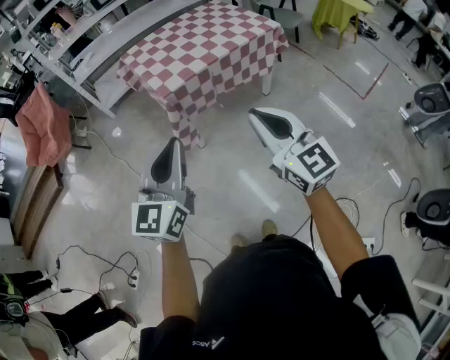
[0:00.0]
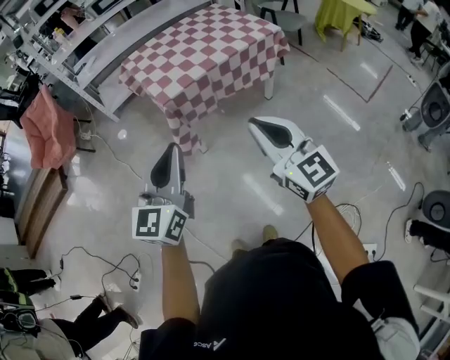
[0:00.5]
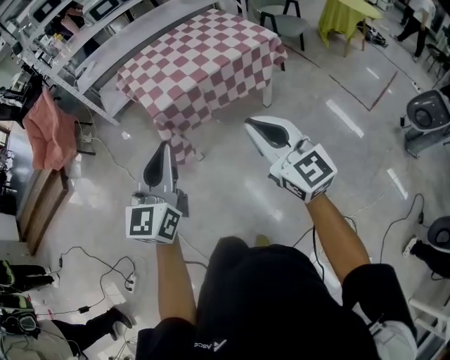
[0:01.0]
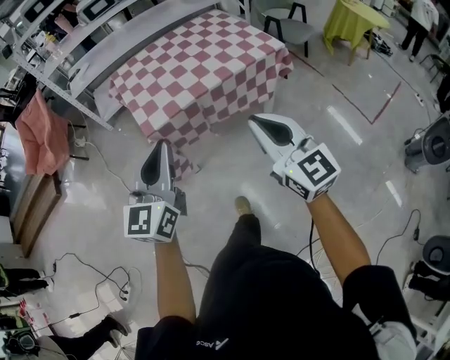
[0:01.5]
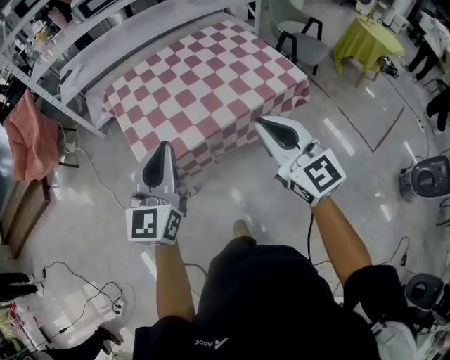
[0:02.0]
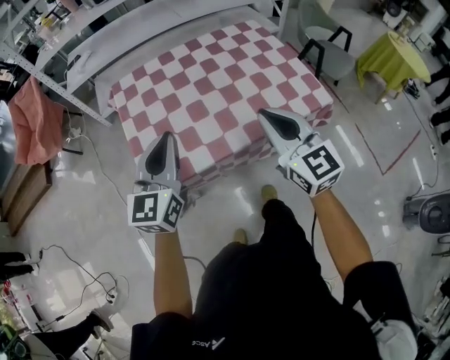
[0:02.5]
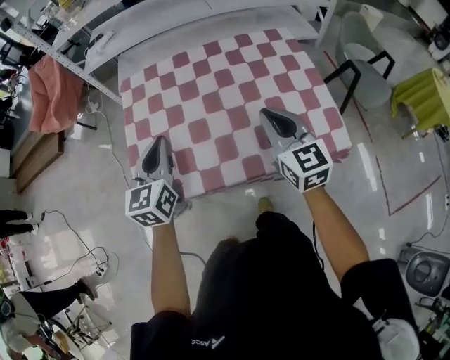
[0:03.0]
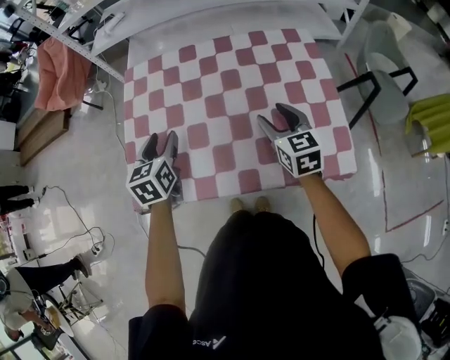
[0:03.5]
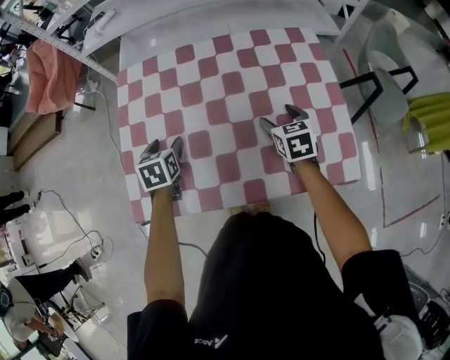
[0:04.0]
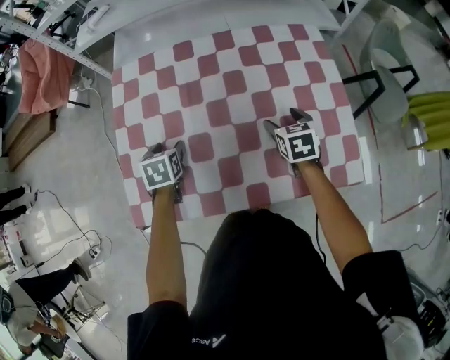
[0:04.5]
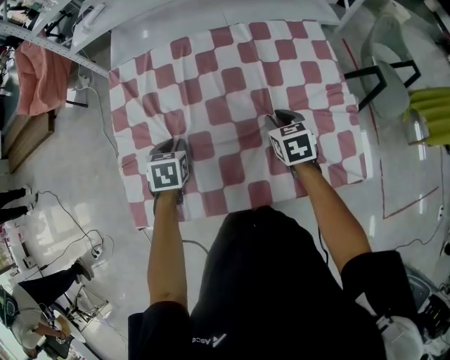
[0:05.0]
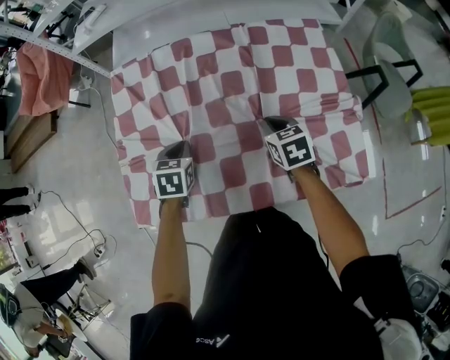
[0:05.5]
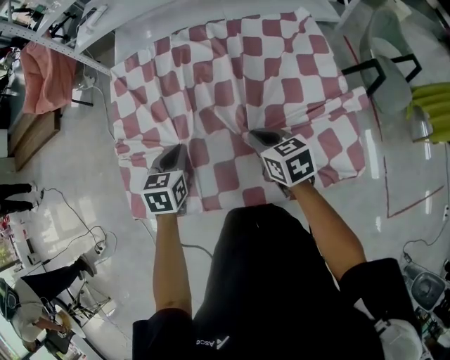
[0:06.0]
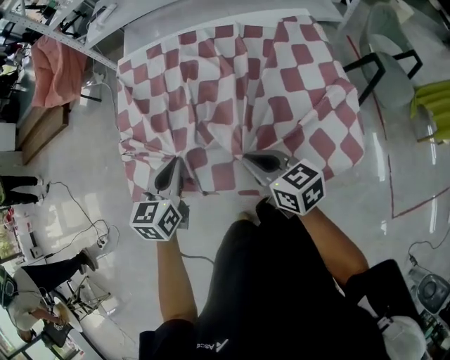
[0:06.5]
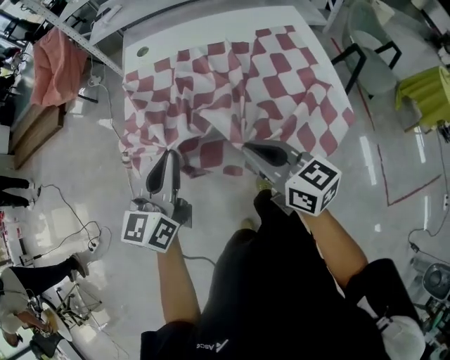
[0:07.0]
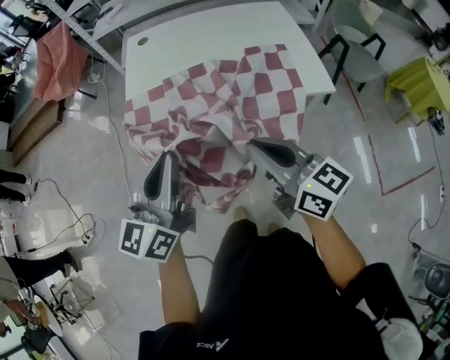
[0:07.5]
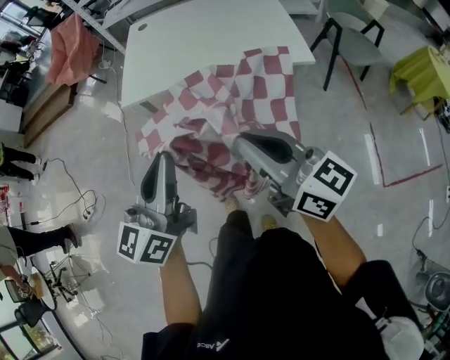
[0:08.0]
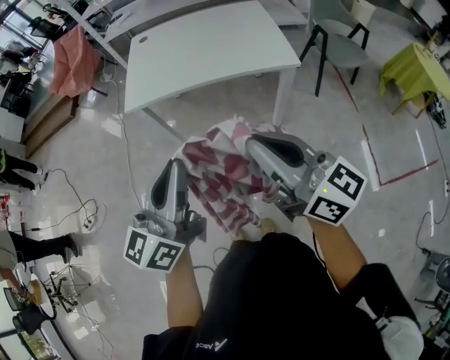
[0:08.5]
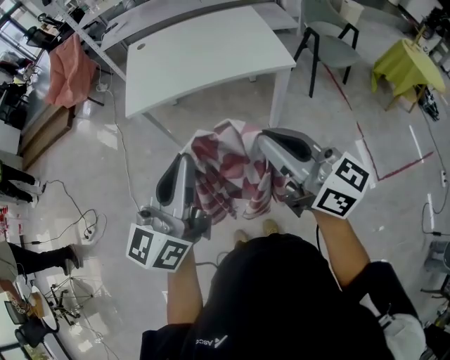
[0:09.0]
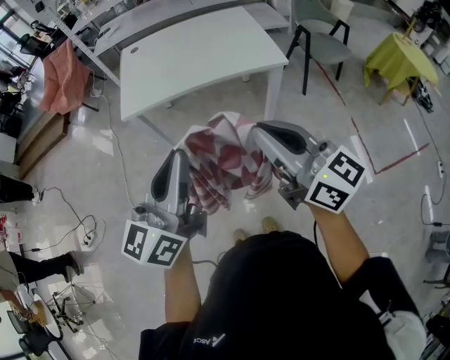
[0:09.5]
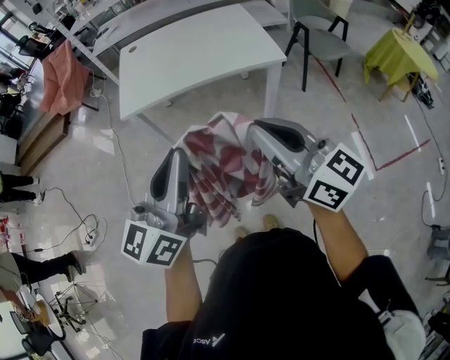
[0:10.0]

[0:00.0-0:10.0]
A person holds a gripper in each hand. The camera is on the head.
0:00.0 to 0:02.0: The two grippers travel together, forward, roughly 50 cm.
0:02.0 to 0:04.0: The pair of grippers is taken forward, about 50 cm. Both grippers travel together downward, roughly 25 cm. The left gripper tilts its fingers about 50 degrees downward, and opens its fingers. Meanwhile the right gripper tilts its fingers about 40 degrees downward, and opens up.
0:04.0 to 0:06.0: The left gripper is displaced backward and to the right by about 10 cm, and closes up, while the right gripper shifts roughly 10 cm to the left and backward, turns by some 20 degrees, and closes up.
0:06.0 to 0:08.0: The two grippers travel together, backward, about 60 cm. The two grippers go about 25 cm upward. The left gripper points its fingers about 50 degrees further upward; the right gripper angles its fingers upward, by approximately 40 degrees.
0:08.0 to 0:10.0: Both grippers travel together backward and upward, approximately 10 cm.

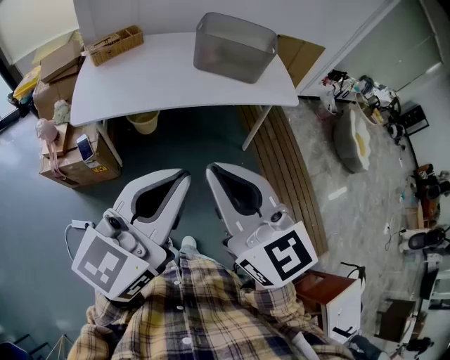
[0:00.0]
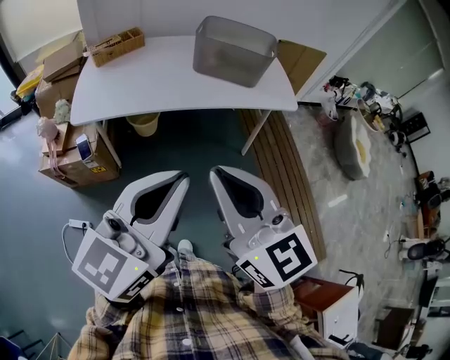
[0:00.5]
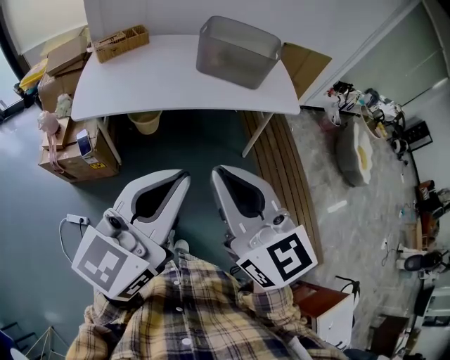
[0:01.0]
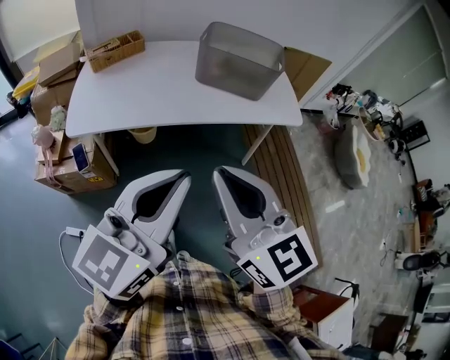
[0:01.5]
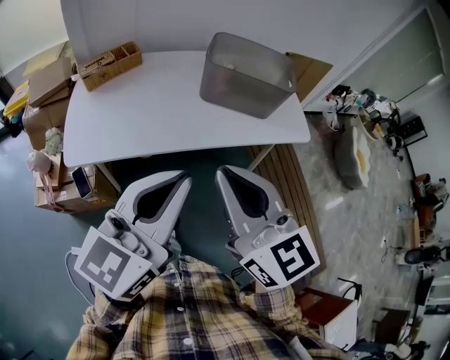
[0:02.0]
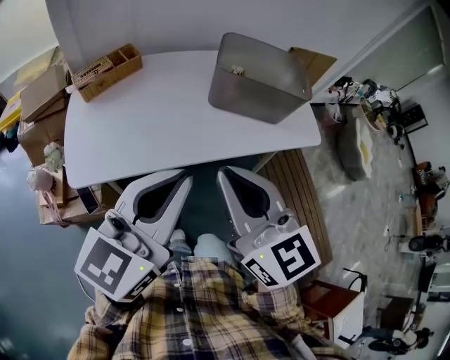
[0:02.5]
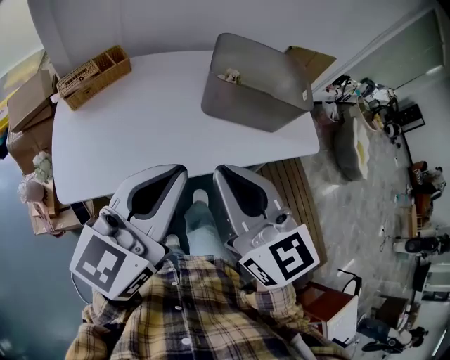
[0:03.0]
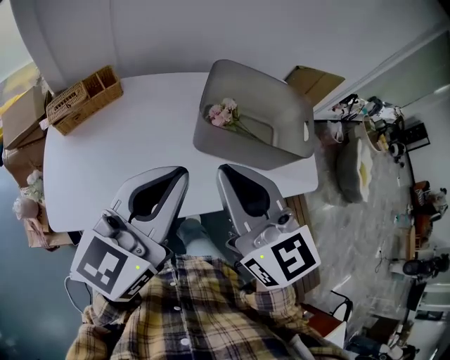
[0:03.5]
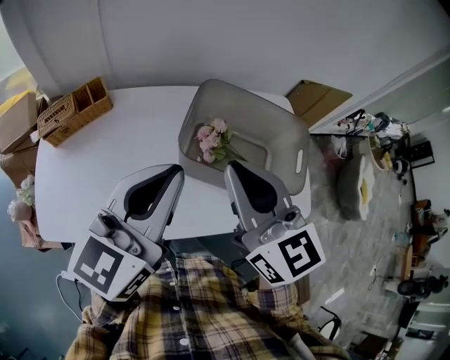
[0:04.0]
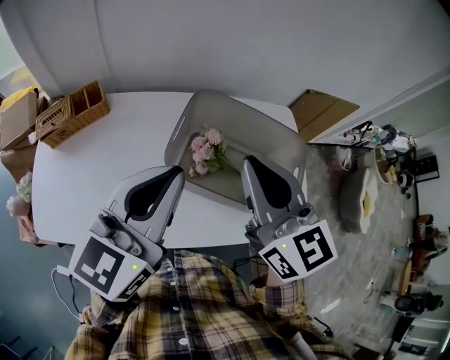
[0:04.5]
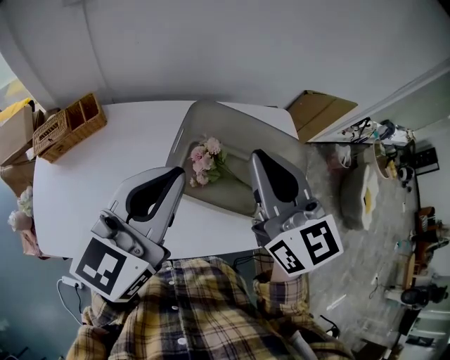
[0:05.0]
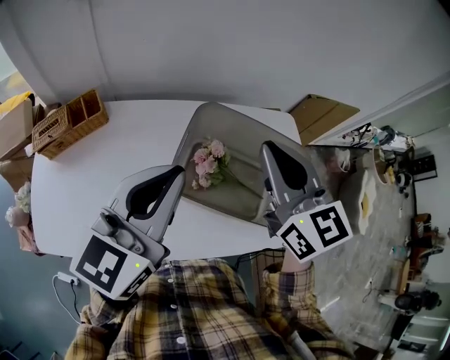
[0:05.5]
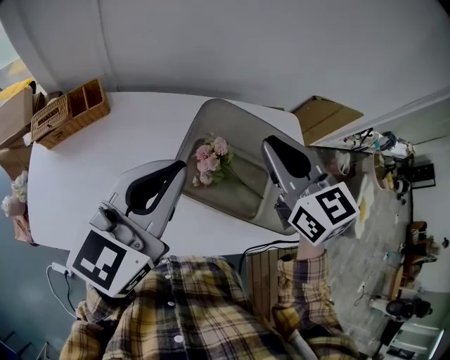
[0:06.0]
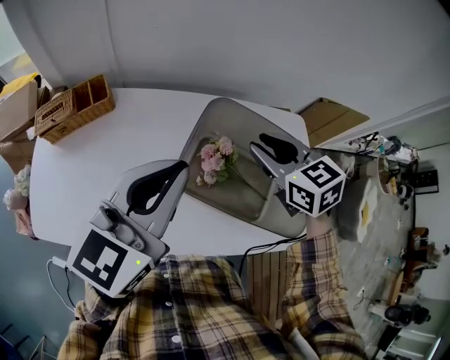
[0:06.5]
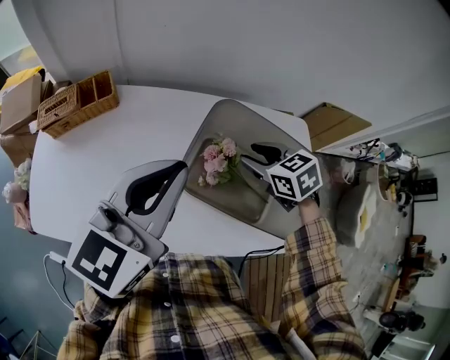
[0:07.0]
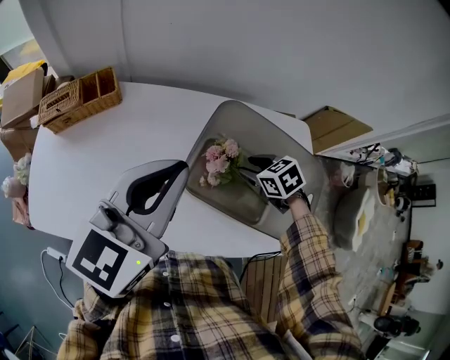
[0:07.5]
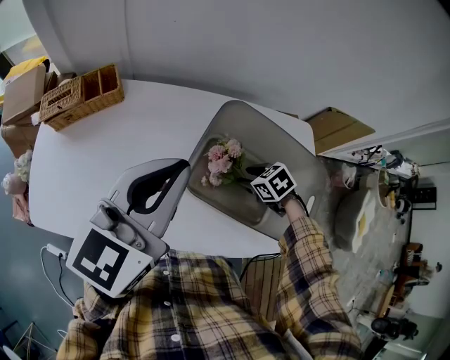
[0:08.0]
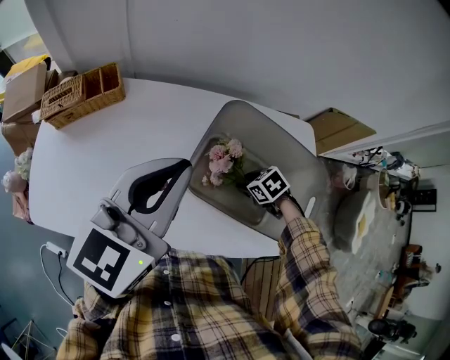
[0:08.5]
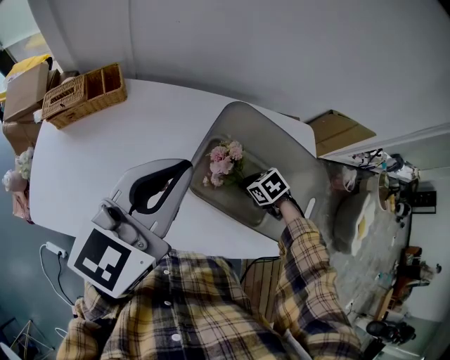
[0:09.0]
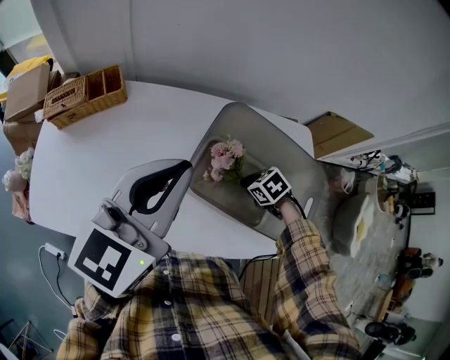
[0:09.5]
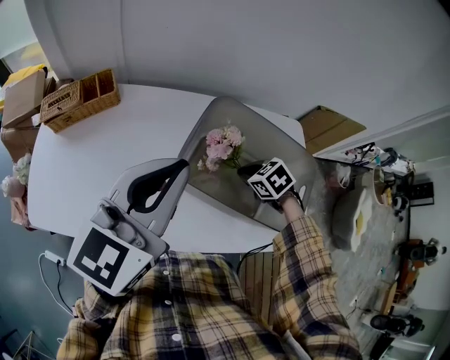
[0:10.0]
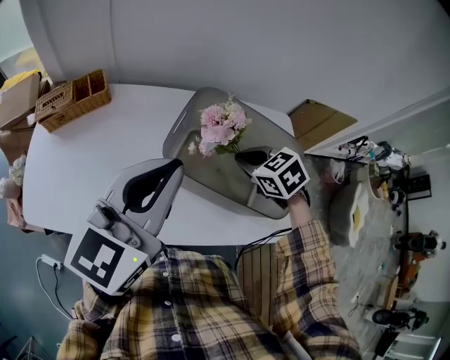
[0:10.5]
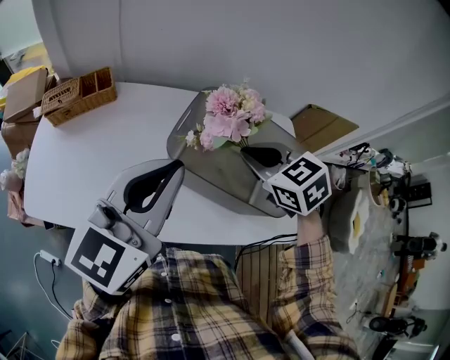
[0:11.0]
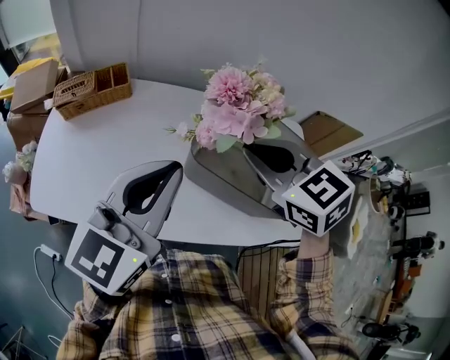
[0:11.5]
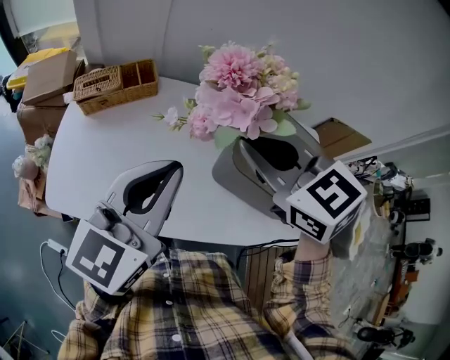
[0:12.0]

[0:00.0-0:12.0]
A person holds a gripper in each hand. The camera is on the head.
0:00.0 to 0:02.0: The grippers both shift forward by roughly 20 cm.
0:02.0 to 0:04.0: The grippers both shift forward by about 40 cm.
0:04.0 to 0:06.0: The right gripper moves forward and to the right, about 15 cm; the left gripper goes about 10 cm forward.
0:06.0 to 0:08.0: The right gripper travels downward by about 30 cm, points its fingers roughly 50 degrees further downward, and opens up.
0:08.0 to 0:10.0: The right gripper closes up.
0:10.0 to 0:12.0: The right gripper moves upward and to the left, some 40 cm, and angles its fingers upward, by about 40 degrees; the left gripper goes roughly 15 cm to the left.

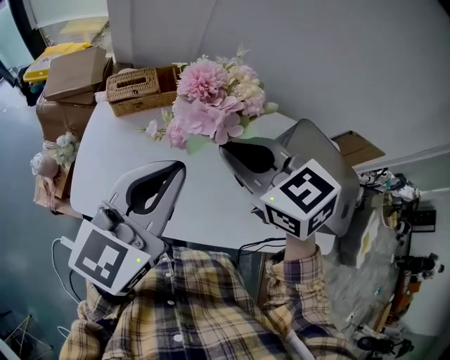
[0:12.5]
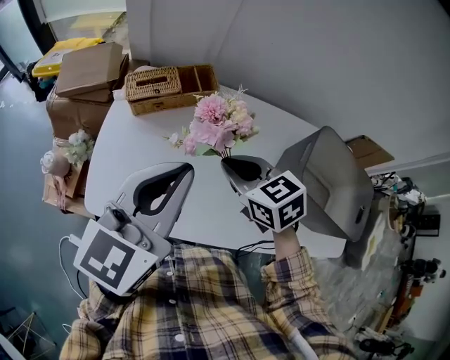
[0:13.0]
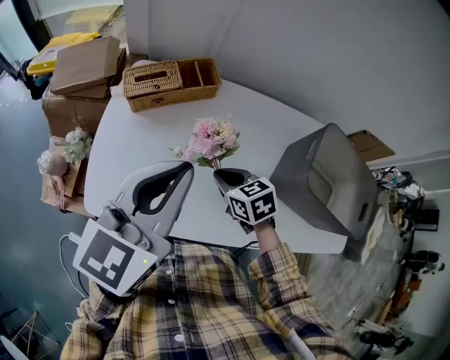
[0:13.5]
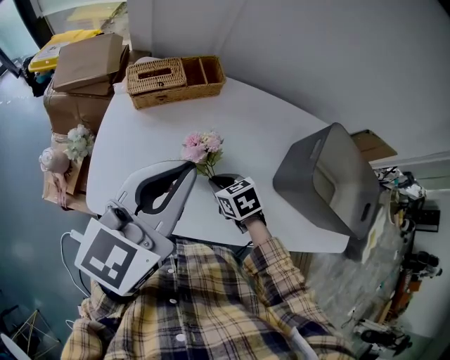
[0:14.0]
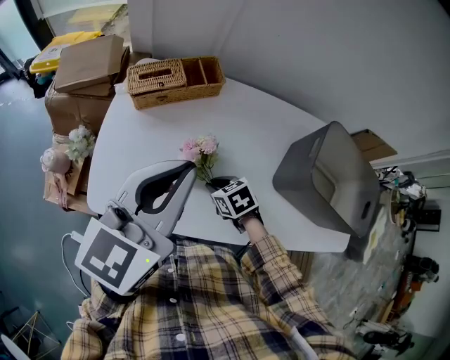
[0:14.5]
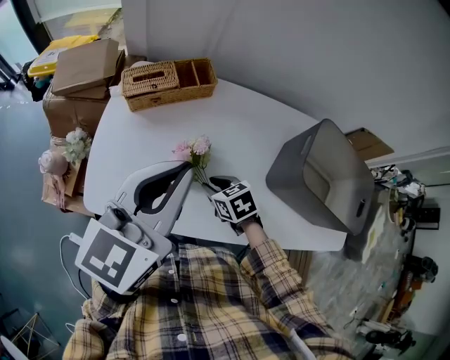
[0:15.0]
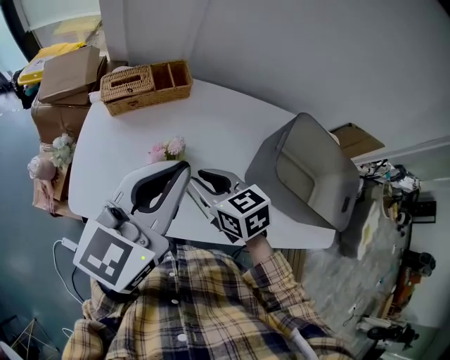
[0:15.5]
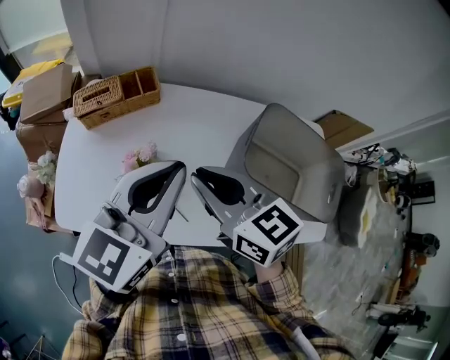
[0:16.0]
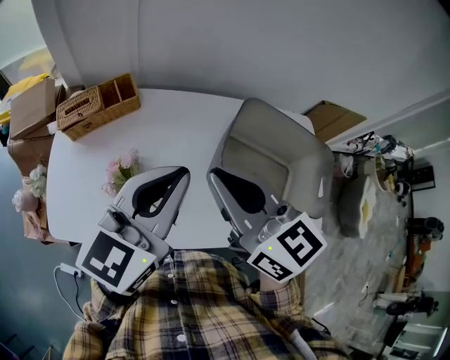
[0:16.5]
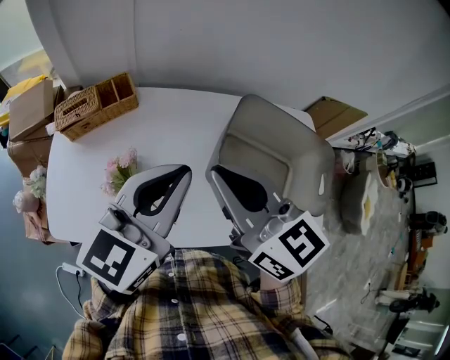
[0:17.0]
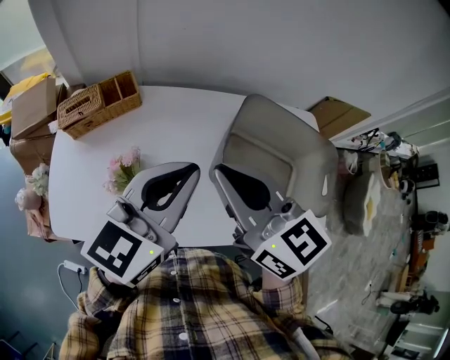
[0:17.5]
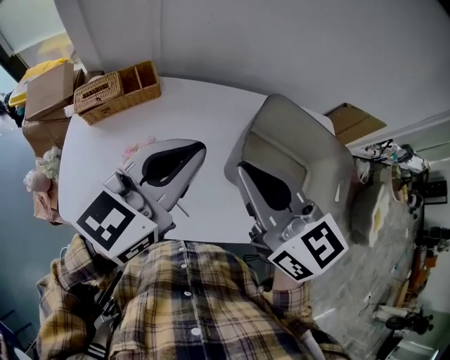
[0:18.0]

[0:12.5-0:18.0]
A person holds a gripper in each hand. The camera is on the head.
0:12.5 to 0:14.5: The left gripper moves to the left, about 5 cm; the right gripper is displaced downward by approximately 35 cm, and turns by roughly 40 degrees.
0:14.5 to 0:16.0: The left gripper shifts approximately 15 cm to the right. The right gripper is displaced upward by roughly 30 cm, and tilts its fingers about 40 degrees upward.
0:16.0 to 0:18.0: The left gripper travels to the right by about 5 cm. Meanwhile the right gripper shifts approximately 10 cm to the right and upward.
